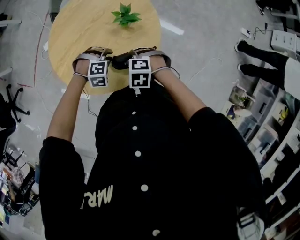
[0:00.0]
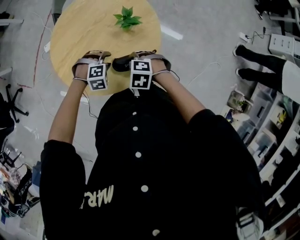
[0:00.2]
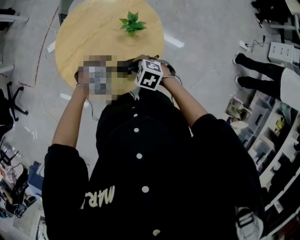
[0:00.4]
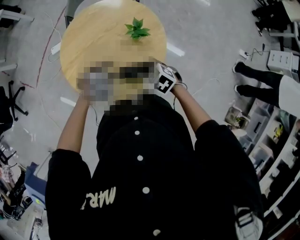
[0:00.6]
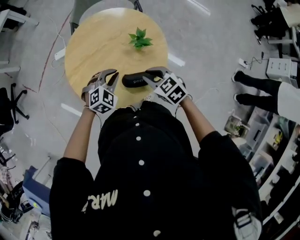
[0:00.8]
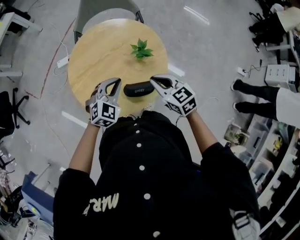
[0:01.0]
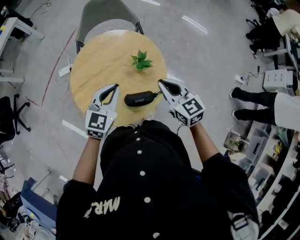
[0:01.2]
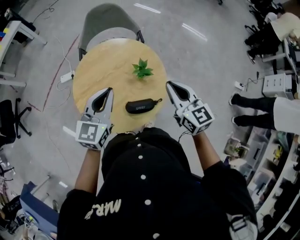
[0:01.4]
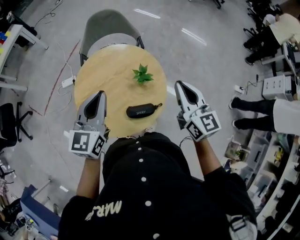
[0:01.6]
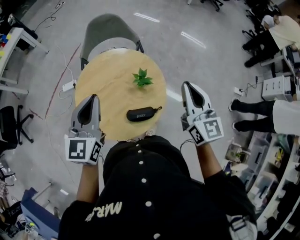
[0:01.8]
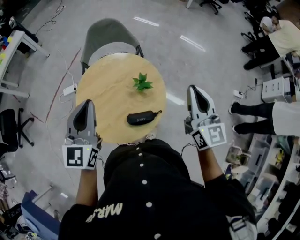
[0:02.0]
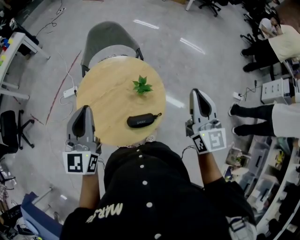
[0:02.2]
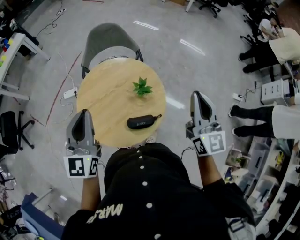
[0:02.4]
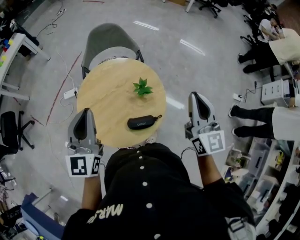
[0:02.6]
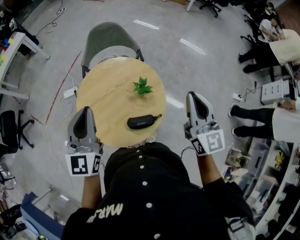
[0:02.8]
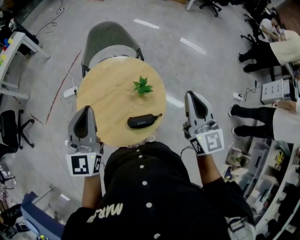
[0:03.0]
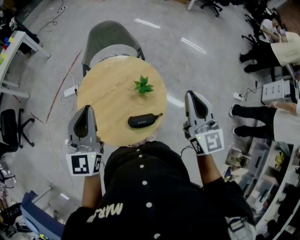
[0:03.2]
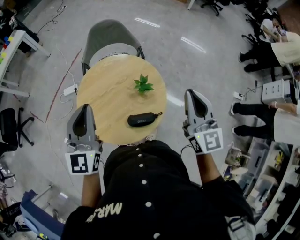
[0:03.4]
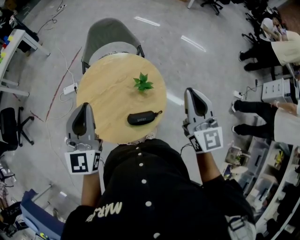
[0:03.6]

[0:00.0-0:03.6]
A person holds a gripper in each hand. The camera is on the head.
0:00.0 to 0:01.8: The grippers both shift upward by some 40 cm. The right gripper tips its fingers upward by some 70 degrees, and closes, while the left gripper tilts its fingers approximately 60 degrees upward, and opens and closes again.
0:01.8 to 0:03.6: There are only small adjustments of the grippers.

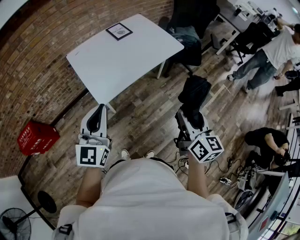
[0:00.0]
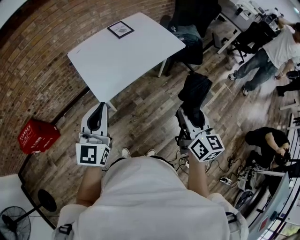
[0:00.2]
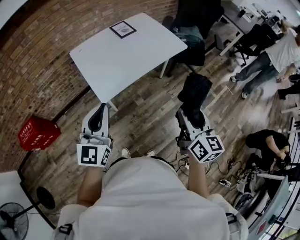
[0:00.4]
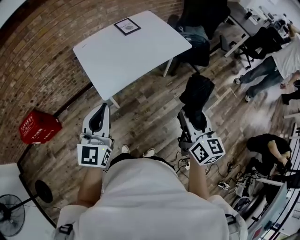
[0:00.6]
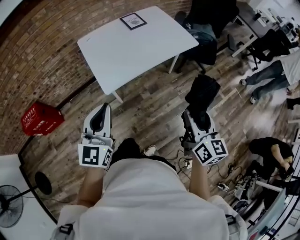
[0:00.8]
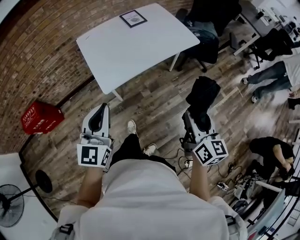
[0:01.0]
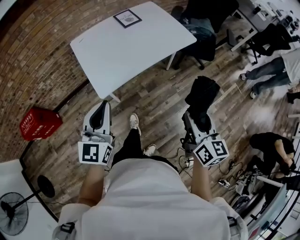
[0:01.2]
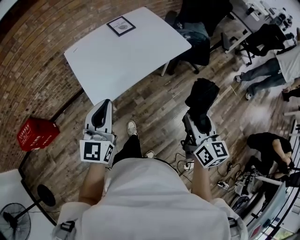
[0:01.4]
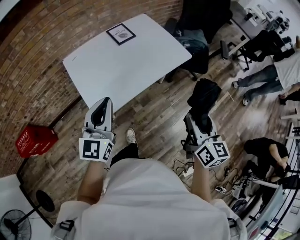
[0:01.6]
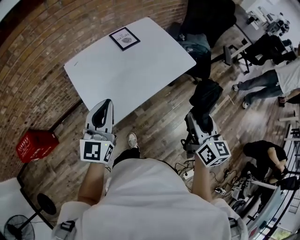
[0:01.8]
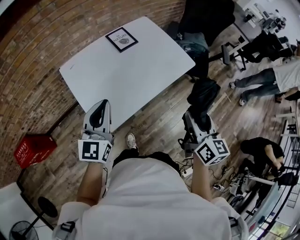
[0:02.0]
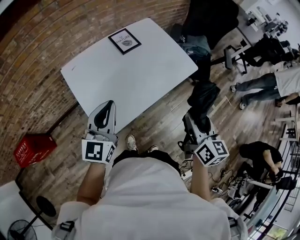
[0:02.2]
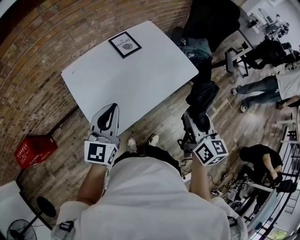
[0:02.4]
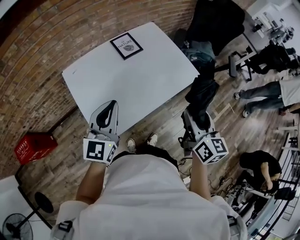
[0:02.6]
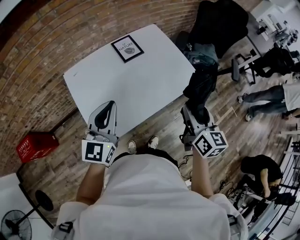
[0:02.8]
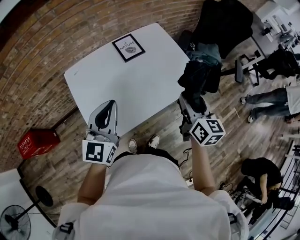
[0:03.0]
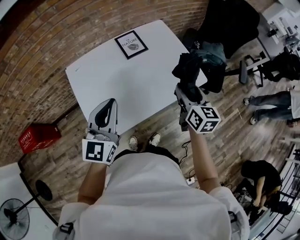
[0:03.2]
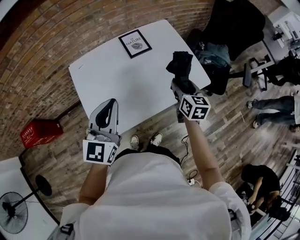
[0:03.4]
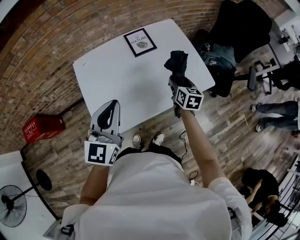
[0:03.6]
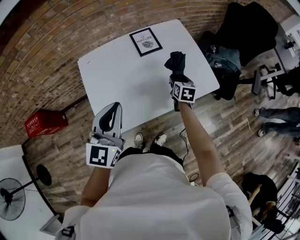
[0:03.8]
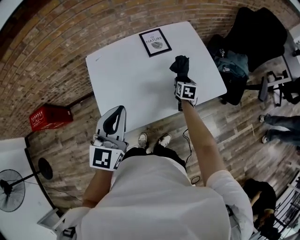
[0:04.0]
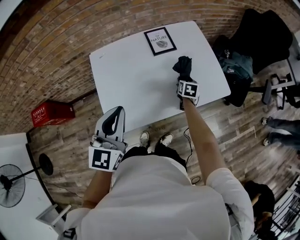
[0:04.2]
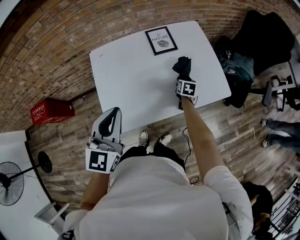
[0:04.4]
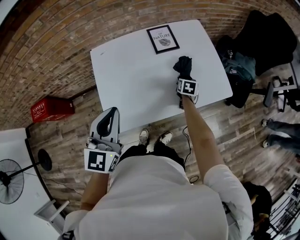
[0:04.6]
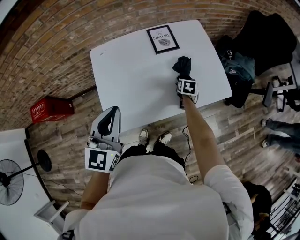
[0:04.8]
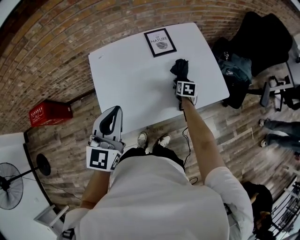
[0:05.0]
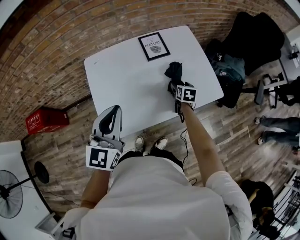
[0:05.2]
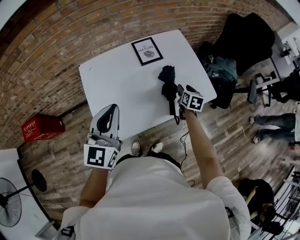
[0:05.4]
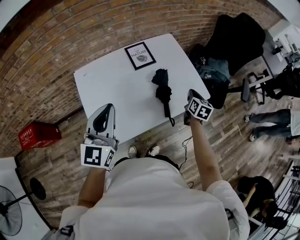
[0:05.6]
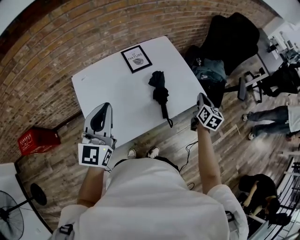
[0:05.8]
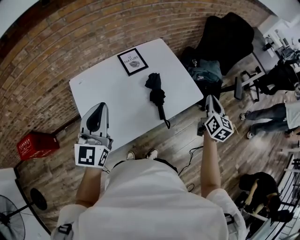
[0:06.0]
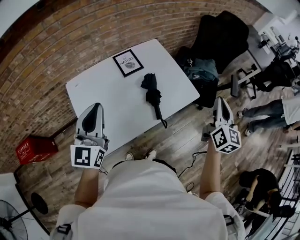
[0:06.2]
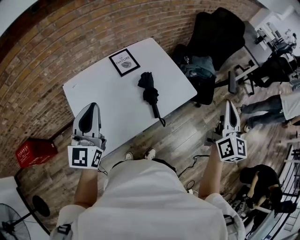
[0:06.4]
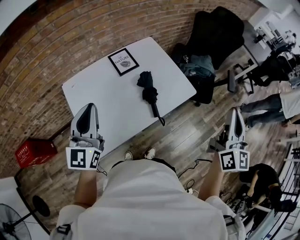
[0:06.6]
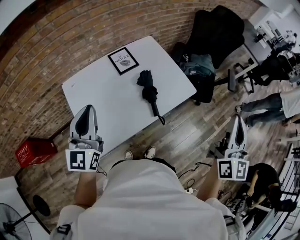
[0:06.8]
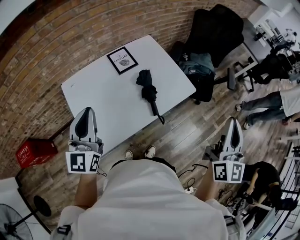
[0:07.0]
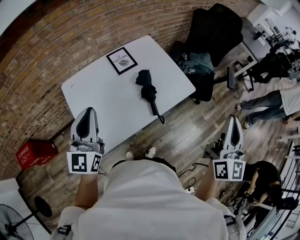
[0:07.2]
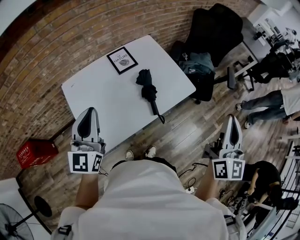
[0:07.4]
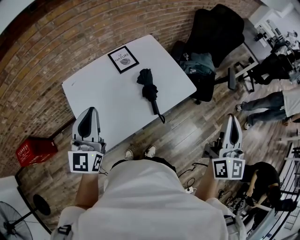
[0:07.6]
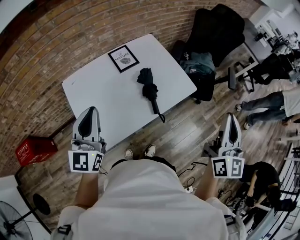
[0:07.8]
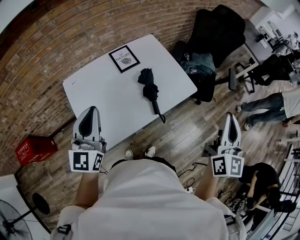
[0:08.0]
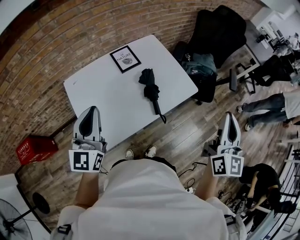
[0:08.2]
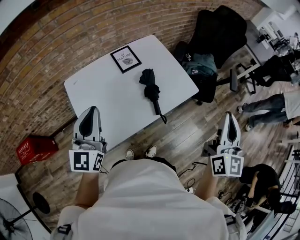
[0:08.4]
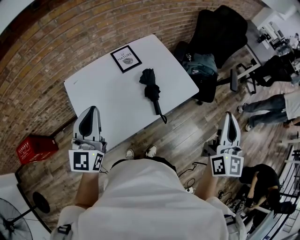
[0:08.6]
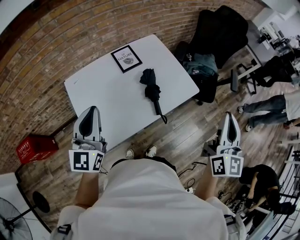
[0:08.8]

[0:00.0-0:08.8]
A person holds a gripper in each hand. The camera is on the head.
0:00.0 to 0:01.4: The grippers both shift forward by approximately 5 cm.
0:01.4 to 0:03.0: Both grippers move forward, approximately 25 cm.
0:03.0 to 0:04.4: The right gripper moves downward and forward, about 35 cm, and angles its fingers downward, by some 30 degrees.
0:04.4 to 0:05.8: The left gripper ends up about 5 cm from where it was, while the right gripper travels upward, to the right and backward by some 25 cm, rotates approximately 30 degrees, and closes.
0:05.8 to 0:07.4: The right gripper moves upward and backward, approximately 30 cm, and tilts its fingers roughly 30 degrees upward.
0:07.4 to 0:08.8: There are only small adjustments of the grippers.

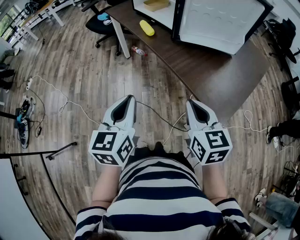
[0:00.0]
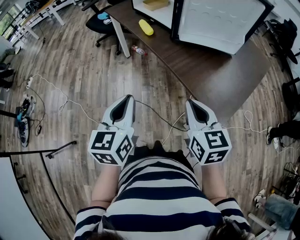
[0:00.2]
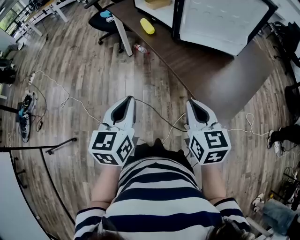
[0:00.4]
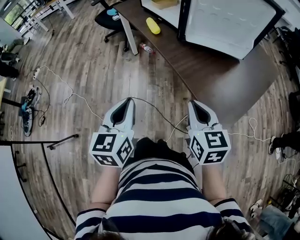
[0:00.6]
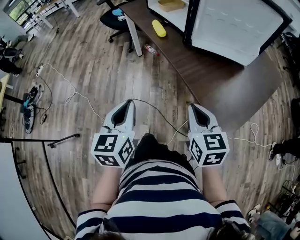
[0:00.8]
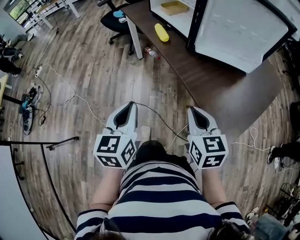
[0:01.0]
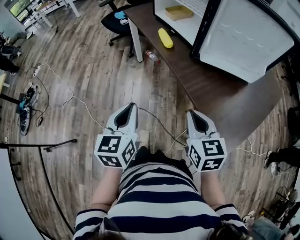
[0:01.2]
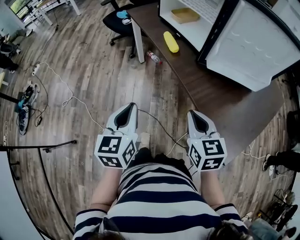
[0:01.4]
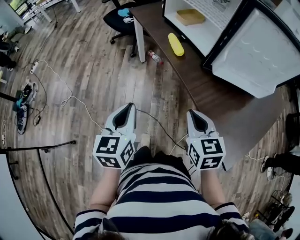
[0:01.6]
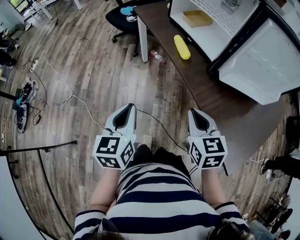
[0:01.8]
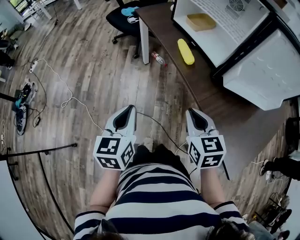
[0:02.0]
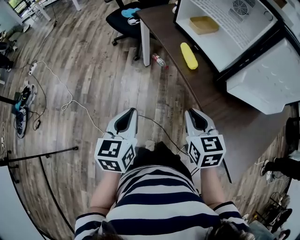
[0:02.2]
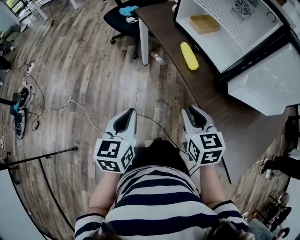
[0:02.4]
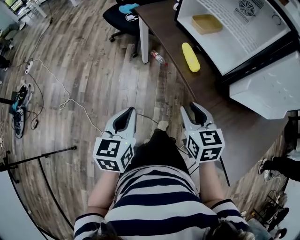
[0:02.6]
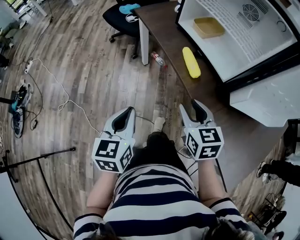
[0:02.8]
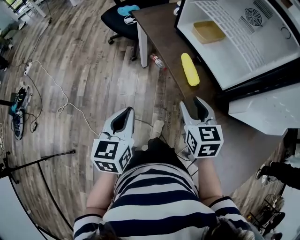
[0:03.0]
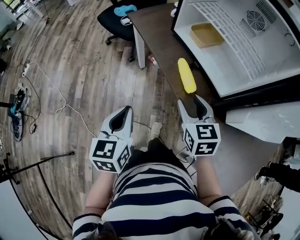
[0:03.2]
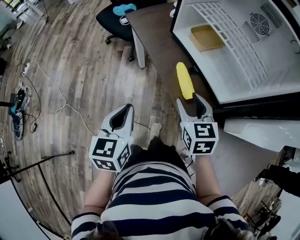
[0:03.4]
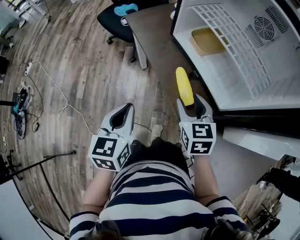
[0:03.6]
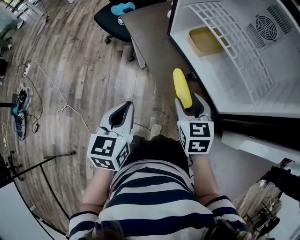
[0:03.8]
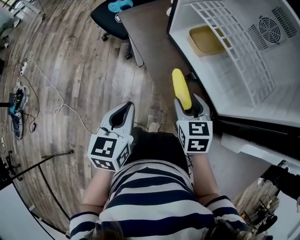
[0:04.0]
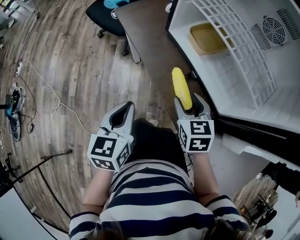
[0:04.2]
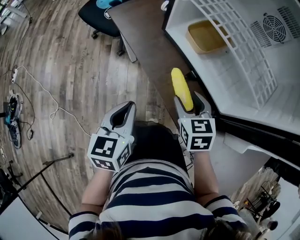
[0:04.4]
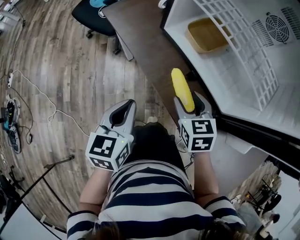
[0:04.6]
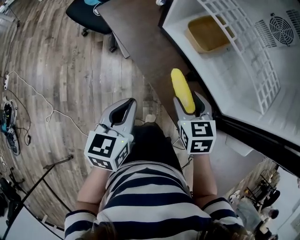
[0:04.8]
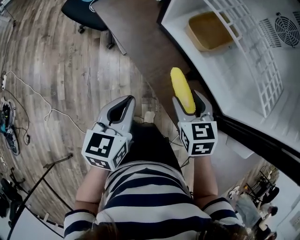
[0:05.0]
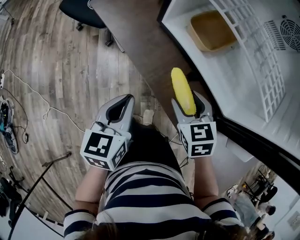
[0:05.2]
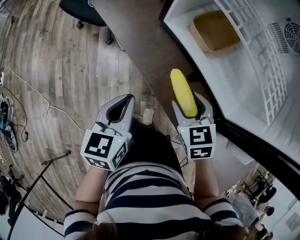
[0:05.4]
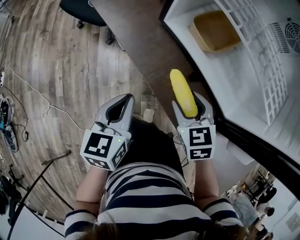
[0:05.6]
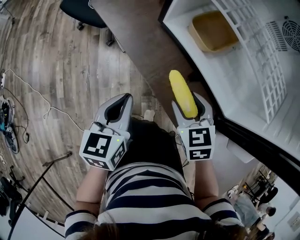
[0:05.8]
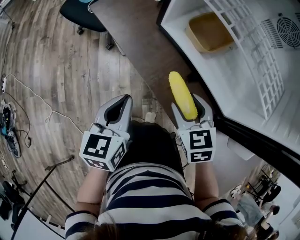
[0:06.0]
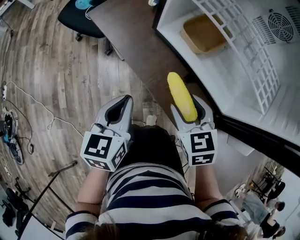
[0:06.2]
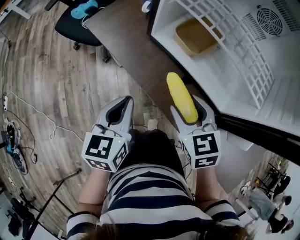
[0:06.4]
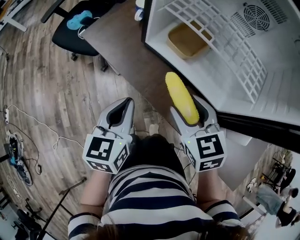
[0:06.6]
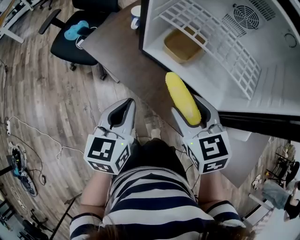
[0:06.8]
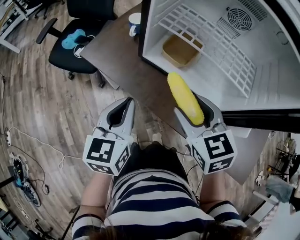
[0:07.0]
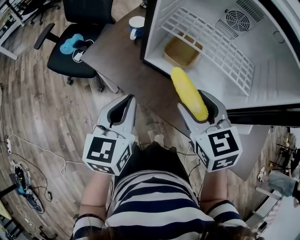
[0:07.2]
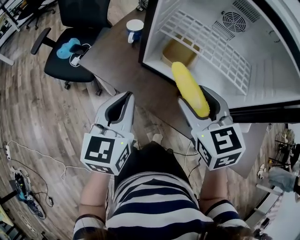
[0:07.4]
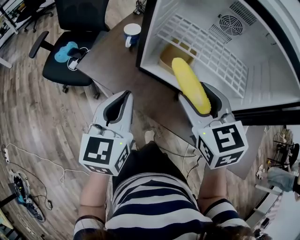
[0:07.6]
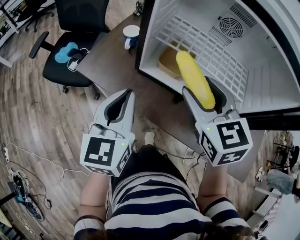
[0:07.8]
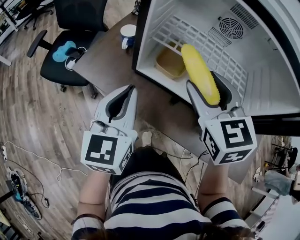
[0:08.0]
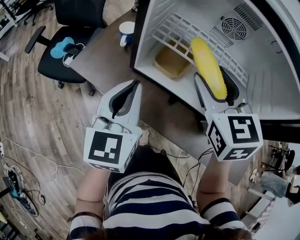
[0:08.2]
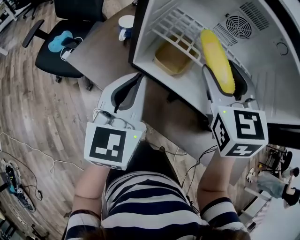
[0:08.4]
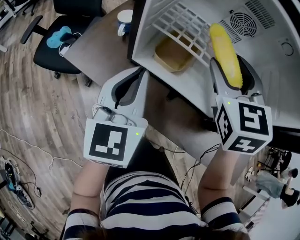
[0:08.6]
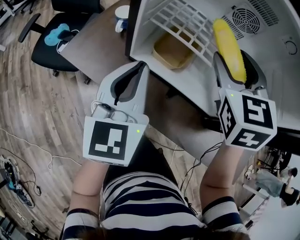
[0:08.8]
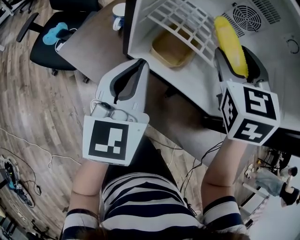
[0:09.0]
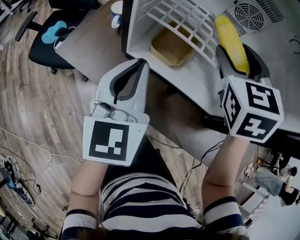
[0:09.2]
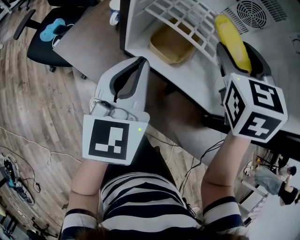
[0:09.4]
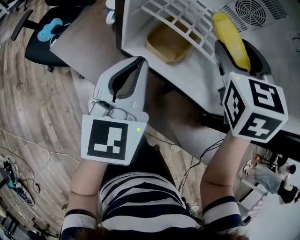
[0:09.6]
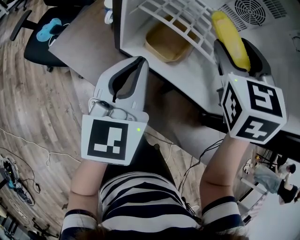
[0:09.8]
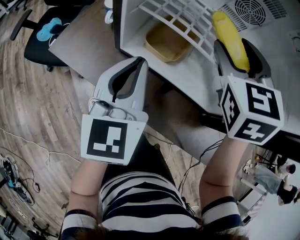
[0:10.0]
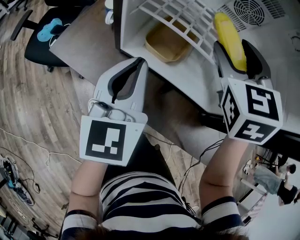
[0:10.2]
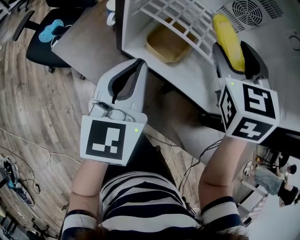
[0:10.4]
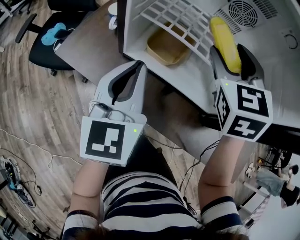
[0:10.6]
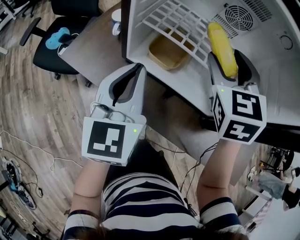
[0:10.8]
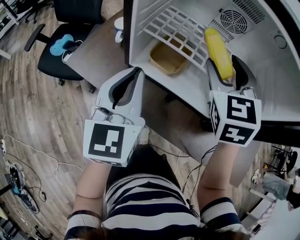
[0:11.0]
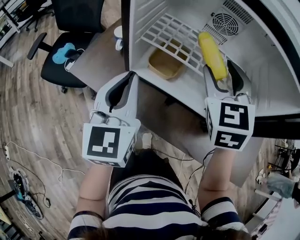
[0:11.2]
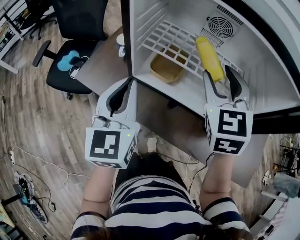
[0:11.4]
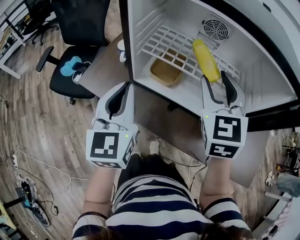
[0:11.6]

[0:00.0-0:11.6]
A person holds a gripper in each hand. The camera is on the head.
0:00.0 to 0:01.4: The right gripper shifts some 15 cm forward, while the left gripper heads forward and to the left, covering some 15 cm.
0:01.4 to 0:02.8: Both grippers move forward and to the left, some 25 cm. The right gripper opens up.
0:02.8 to 0:04.4: Both grippers move forward, approximately 25 cm.
0:04.4 to 0:05.8: The left gripper moves some 5 cm.
0:05.8 to 0:07.2: The right gripper moves upward, some 20 cm, while the left gripper travels upward and forward by approximately 15 cm, and swivels approximately 20 degrees.
0:07.2 to 0:08.8: The left gripper travels forward and to the right by roughly 10 cm; the right gripper goes approximately 20 cm forward, to the right and upward, and turns by approximately 30 degrees.
0:08.8 to 0:10.2: There are only small adjustments of the grippers.
0:10.2 to 0:11.6: The right gripper shifts some 10 cm backward. The left gripper travels upward by roughly 10 cm.
